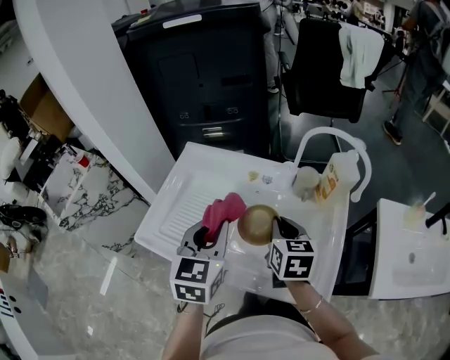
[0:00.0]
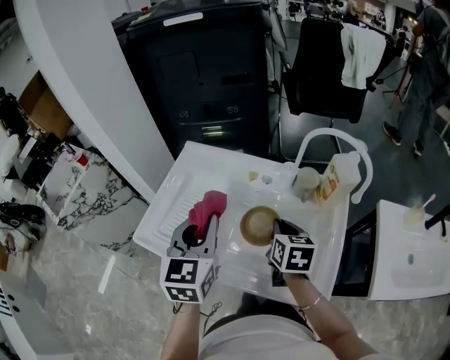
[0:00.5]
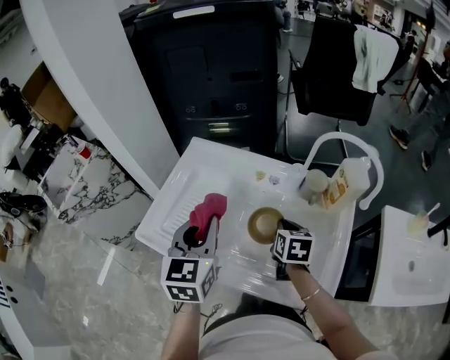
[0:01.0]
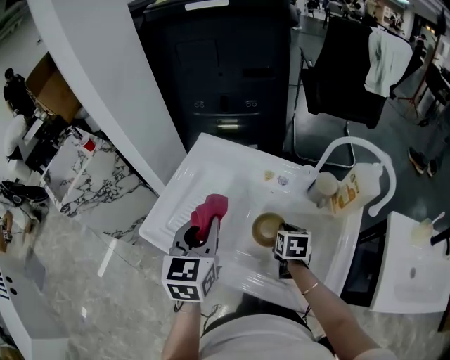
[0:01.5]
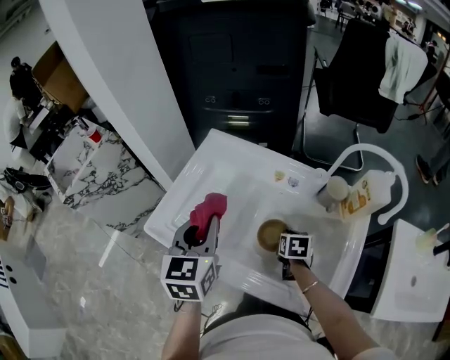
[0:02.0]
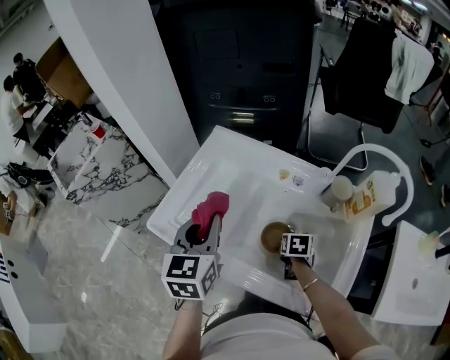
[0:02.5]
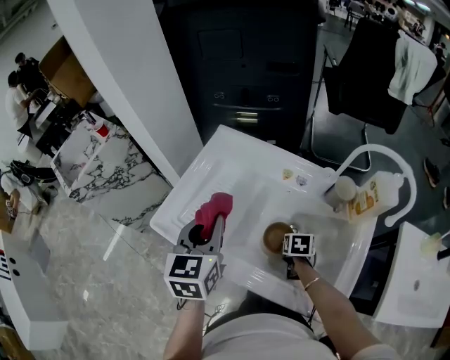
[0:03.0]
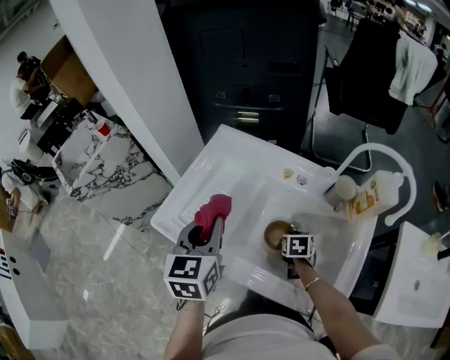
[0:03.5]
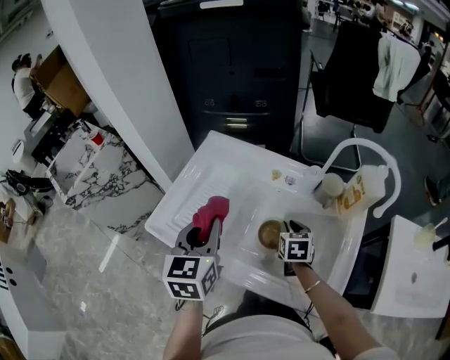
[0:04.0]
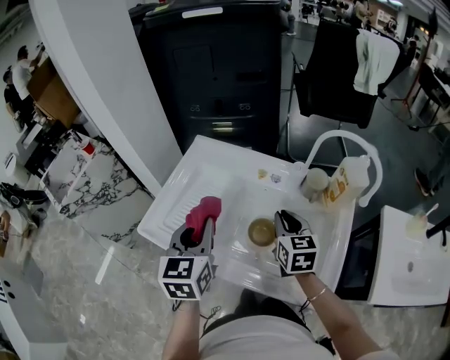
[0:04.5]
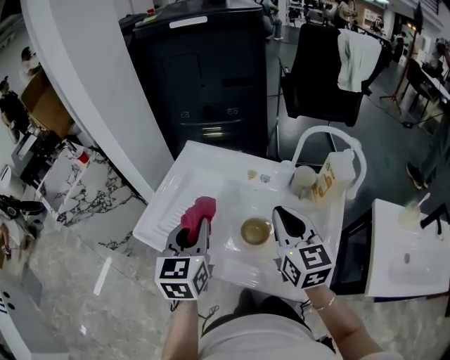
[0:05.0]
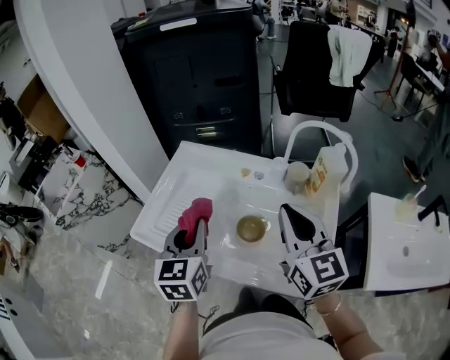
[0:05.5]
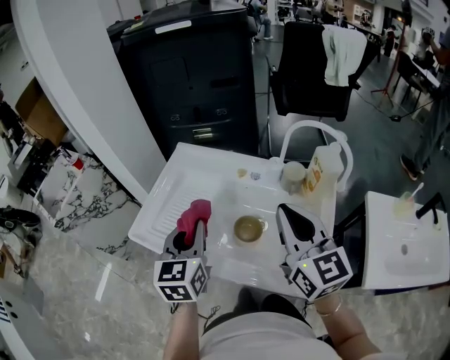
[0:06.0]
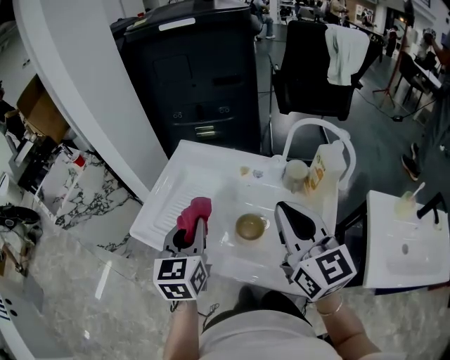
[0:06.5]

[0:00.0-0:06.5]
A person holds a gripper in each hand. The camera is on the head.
0:00.0 to 0:02.0: The right gripper travels downward by about 20 cm, and changes its angle by roughly 30 degrees; the left gripper is displaced to the left by roughly 10 cm.
0:02.0 to 0:04.5: The left gripper changes place by approximately 5 cm. Meanwhile the right gripper shifts approximately 15 cm upward, and angles its fingers upward, by about 30 degrees.
0:04.5 to 0:06.5: The right gripper shifts roughly 20 cm upward and backward, and swivels approximately 30 degrees.

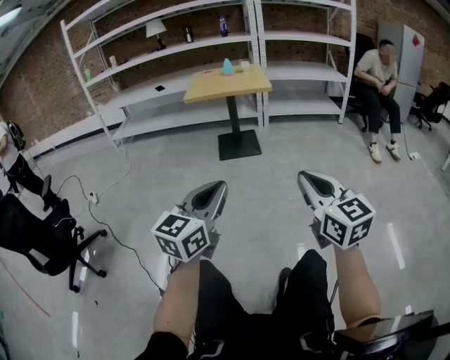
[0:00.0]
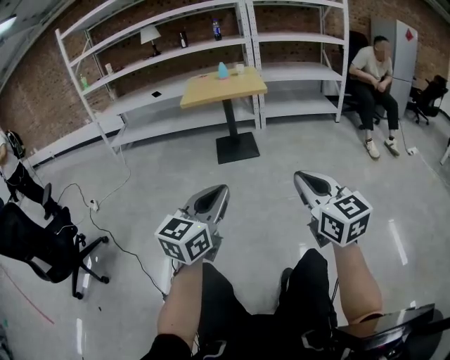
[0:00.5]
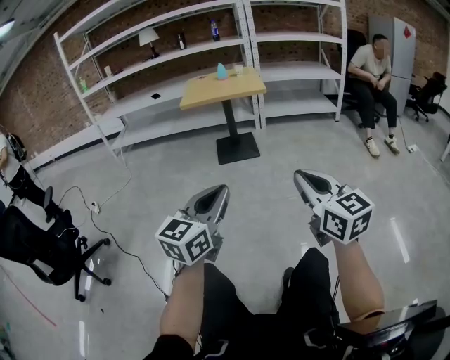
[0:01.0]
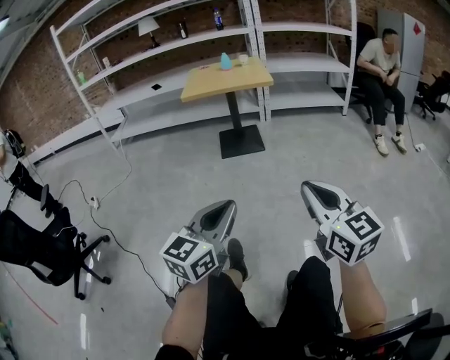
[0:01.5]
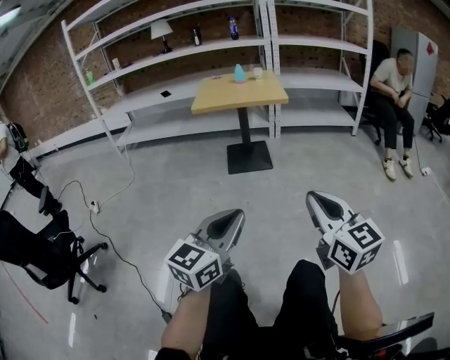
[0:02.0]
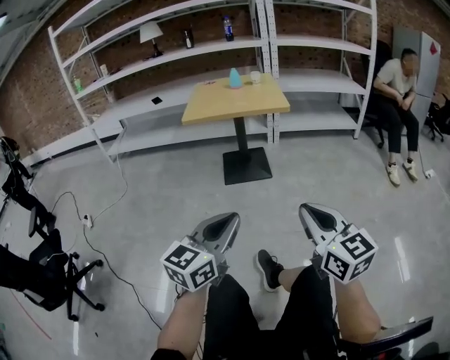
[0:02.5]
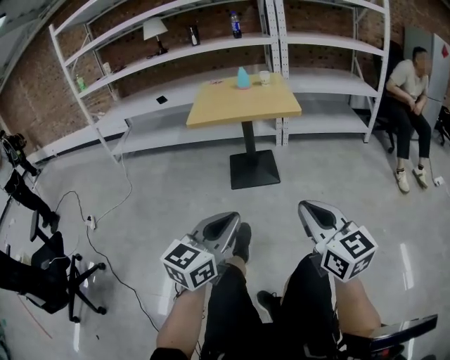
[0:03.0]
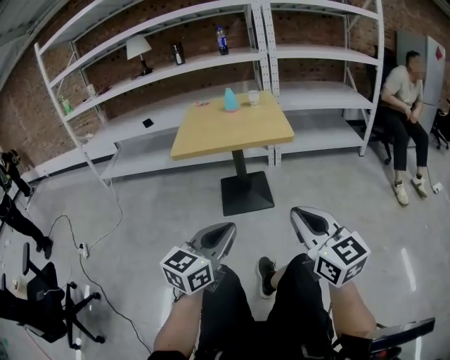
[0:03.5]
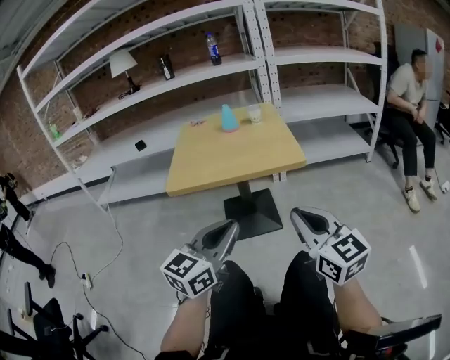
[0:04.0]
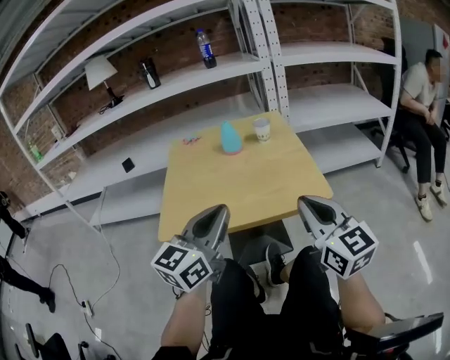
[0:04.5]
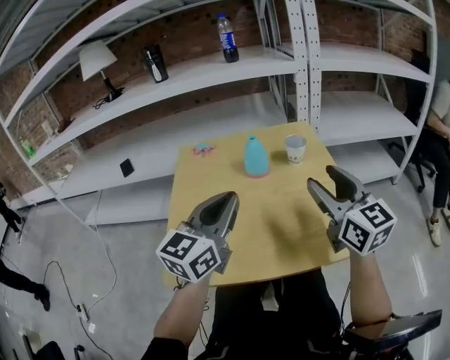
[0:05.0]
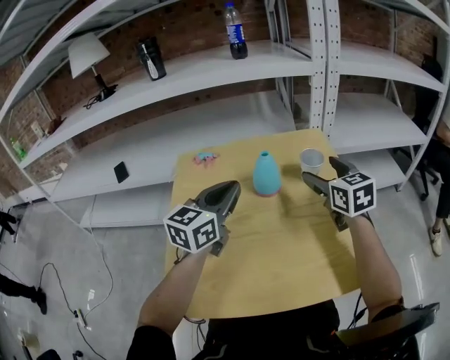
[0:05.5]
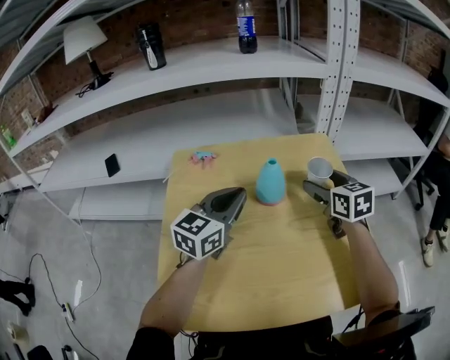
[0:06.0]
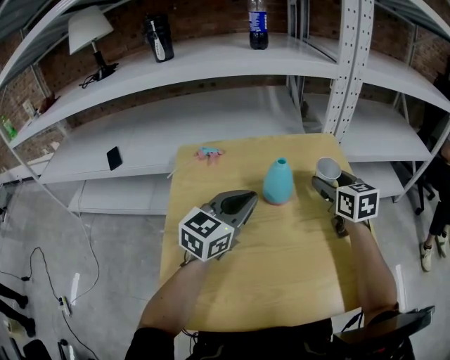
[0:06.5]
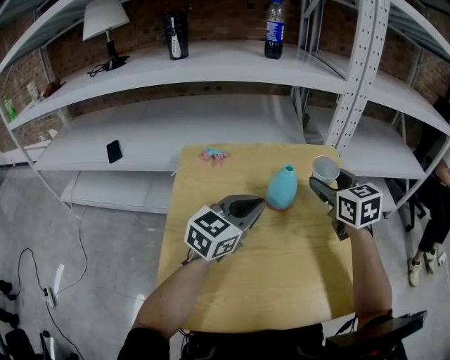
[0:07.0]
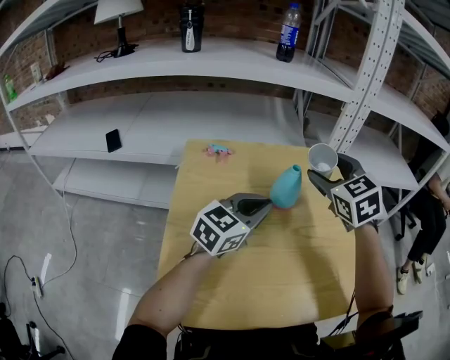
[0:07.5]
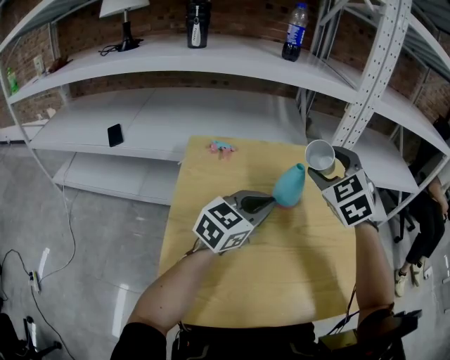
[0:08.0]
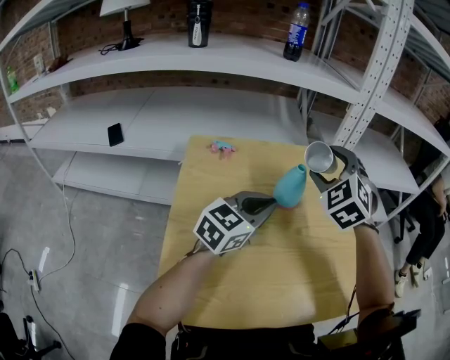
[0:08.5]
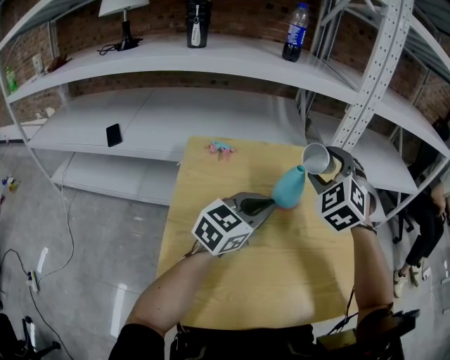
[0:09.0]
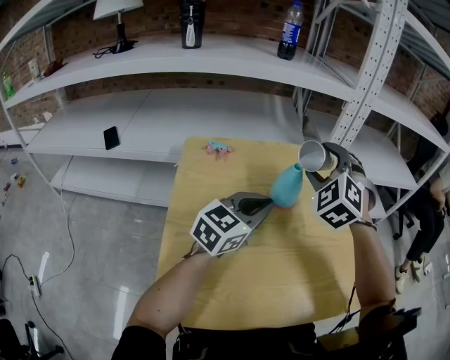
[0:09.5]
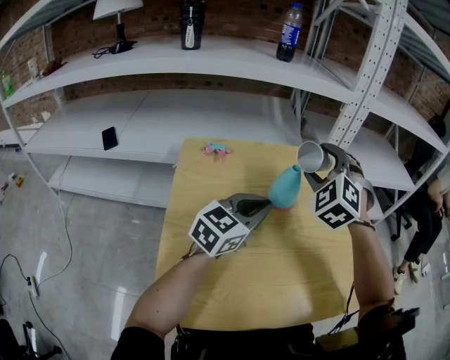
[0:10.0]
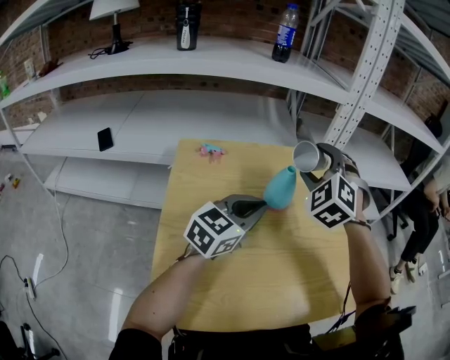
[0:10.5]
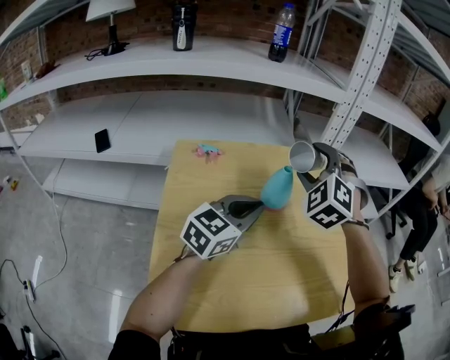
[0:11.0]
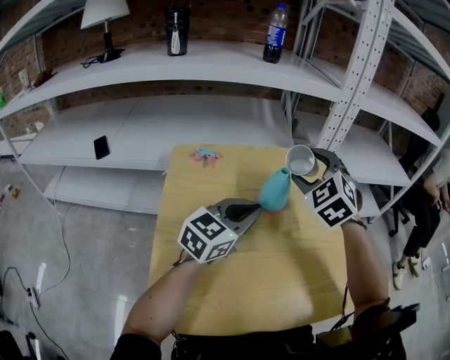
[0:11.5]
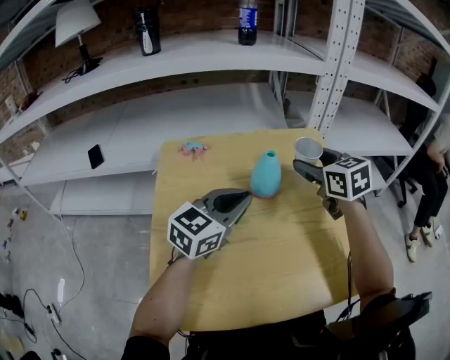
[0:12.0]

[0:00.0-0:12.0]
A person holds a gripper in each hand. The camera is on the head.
0:00.0 to 0:02.0: The grippers both shift forward by about 10 cm.
0:02.0 to 0:04.0: The two grippers travel together, forward, about 50 cm.
0:04.0 to 0:06.0: The two grippers travel together, forward, about 70 cm. The right gripper changes its angle by roughly 20 degrees, and opens up.
0:06.0 to 0:08.0: The right gripper is displaced upward and to the left by some 15 cm, and rotates around the line of its fingers by roughly 50 degrees, counterclockwise from behind.
0:08.0 to 0:10.0: The right gripper turns by about 20 degrees.
0:10.0 to 0:12.0: The right gripper shifts roughly 10 cm downward and to the right, and twists approximately 60 degrees clockwise, seen from behind.

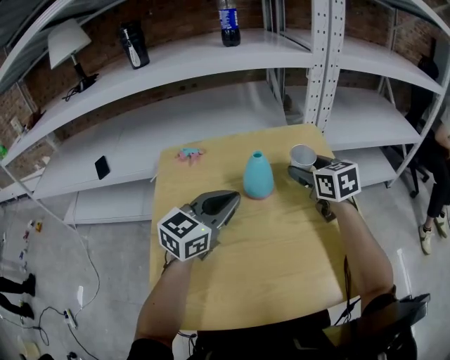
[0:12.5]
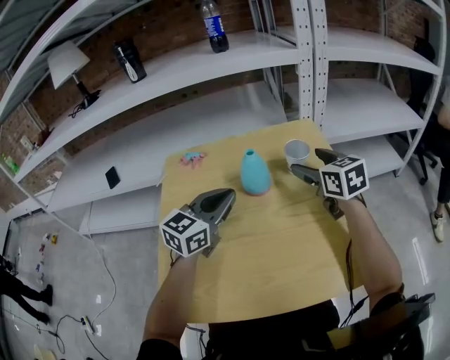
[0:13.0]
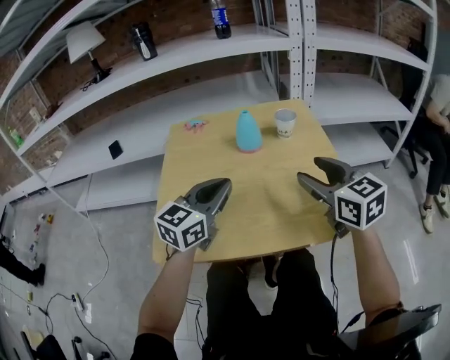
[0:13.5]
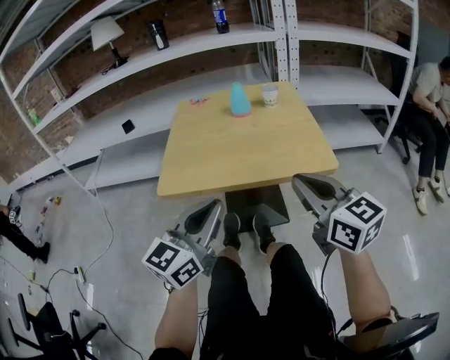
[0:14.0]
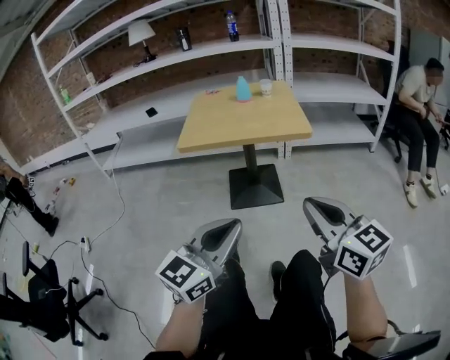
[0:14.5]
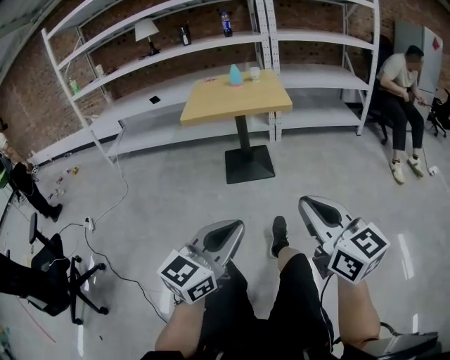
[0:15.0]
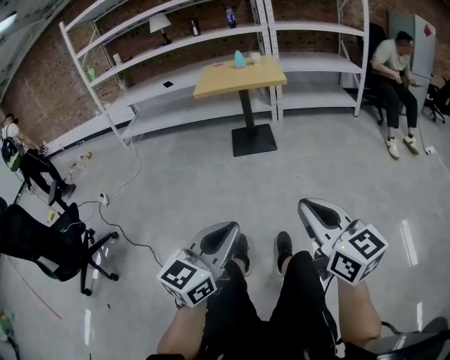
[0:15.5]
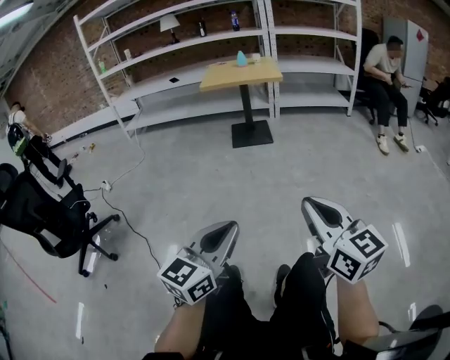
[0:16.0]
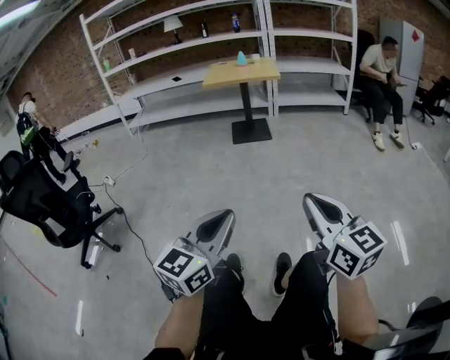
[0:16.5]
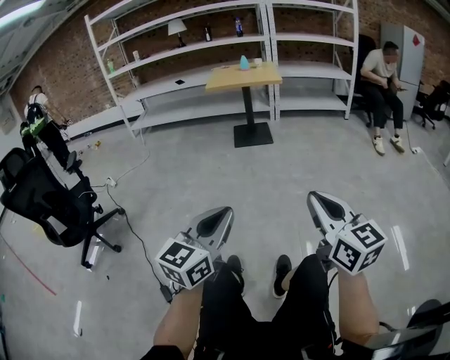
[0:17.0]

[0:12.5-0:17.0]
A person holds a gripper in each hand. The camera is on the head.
0:12.5 to 0:14.5: The two grippers travel together, backward, about 80 cm. The right gripper swivels some 30 degrees, and closes.
0:14.5 to 0:17.0: Both grippers are carried backward, about 70 cm.

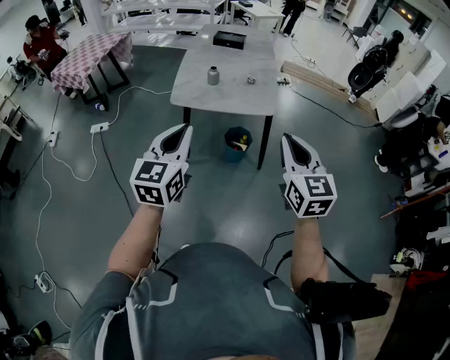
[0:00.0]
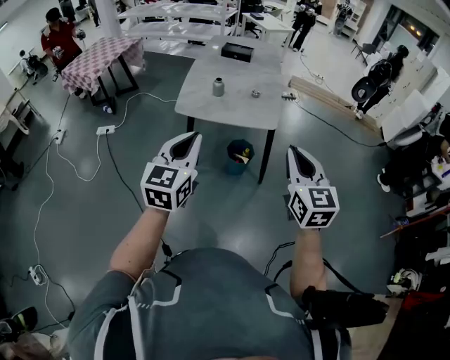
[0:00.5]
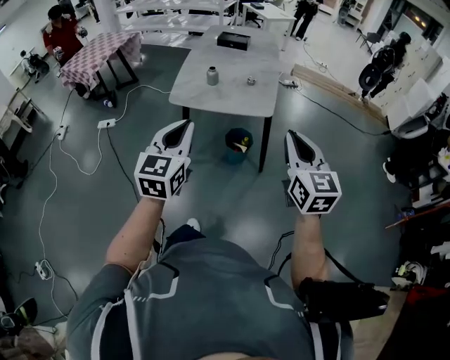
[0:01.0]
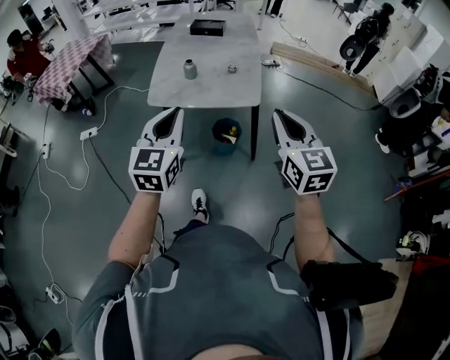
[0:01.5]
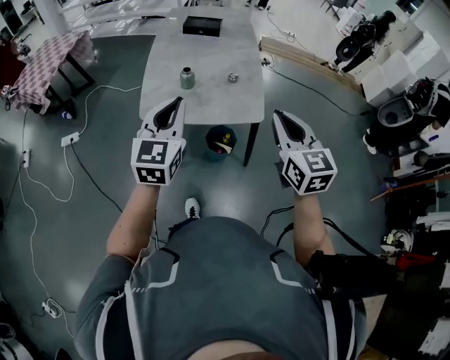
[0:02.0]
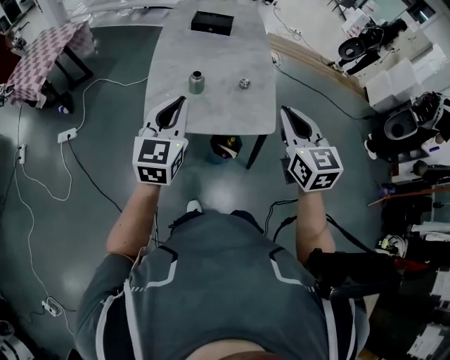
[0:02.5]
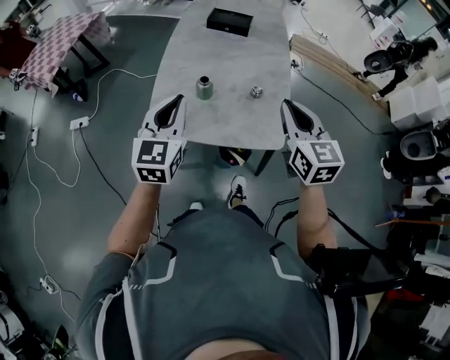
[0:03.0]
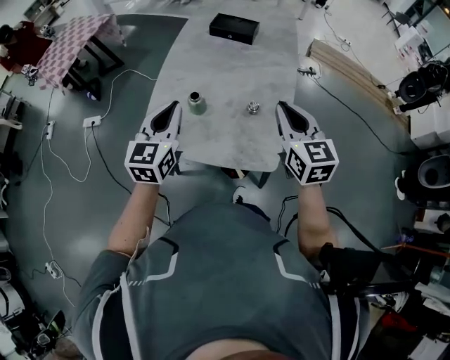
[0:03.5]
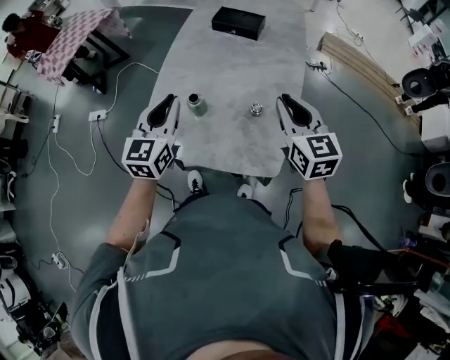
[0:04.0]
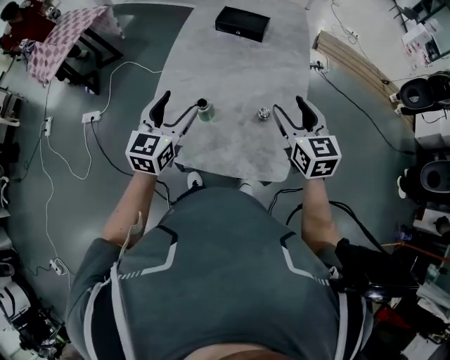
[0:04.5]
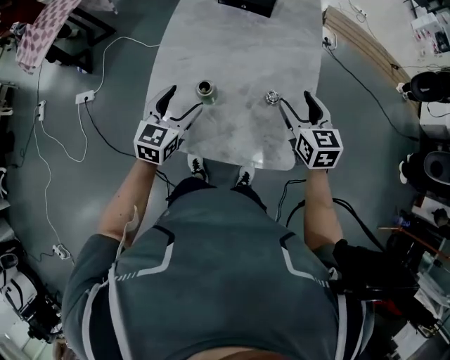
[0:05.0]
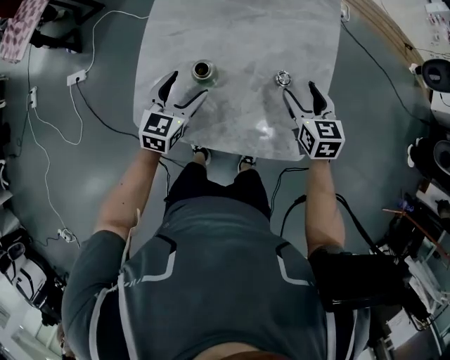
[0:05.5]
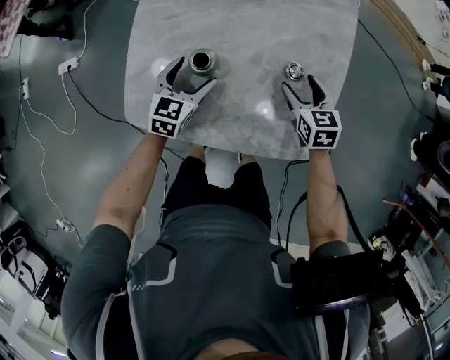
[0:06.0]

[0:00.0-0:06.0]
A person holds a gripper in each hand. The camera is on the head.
0:00.0 to 0:02.0: Both grippers travel together forward, roughly 25 cm.
0:02.0 to 0:04.0: The grippers both shift forward by about 35 cm.
0:04.0 to 0:06.0: The grippers both shift downward by roughly 35 cm. The right gripper turns by about 30 degrees, and opens up. Meanwhile the left gripper swivels some 30 degrees, and opens up.
